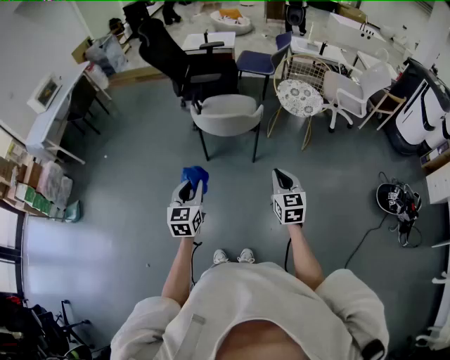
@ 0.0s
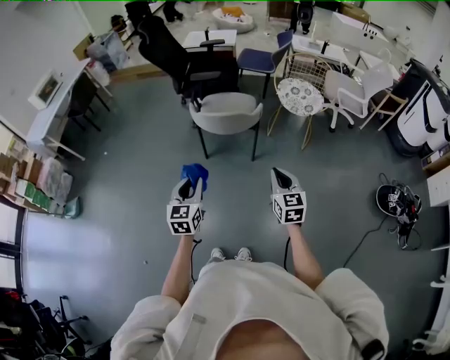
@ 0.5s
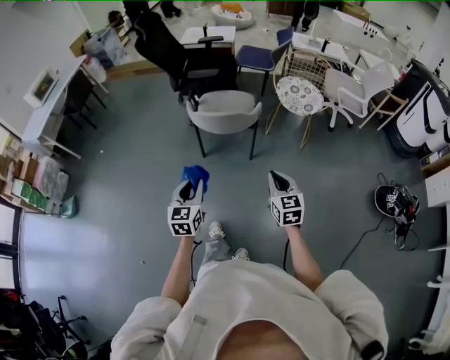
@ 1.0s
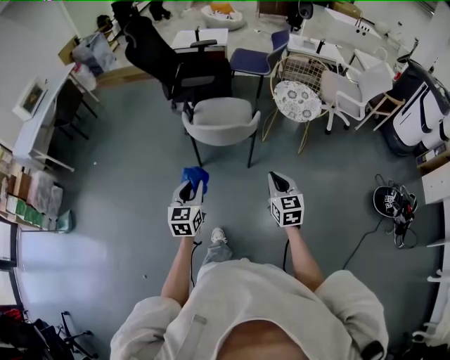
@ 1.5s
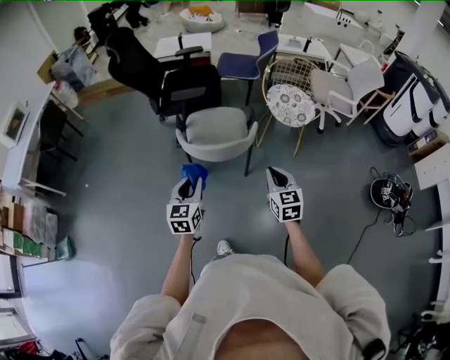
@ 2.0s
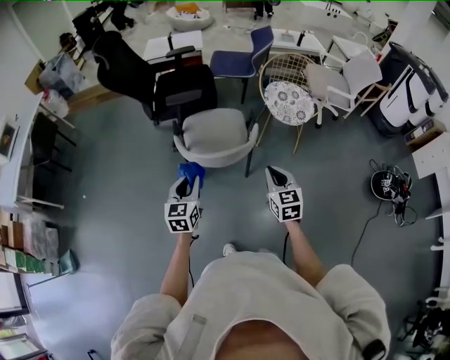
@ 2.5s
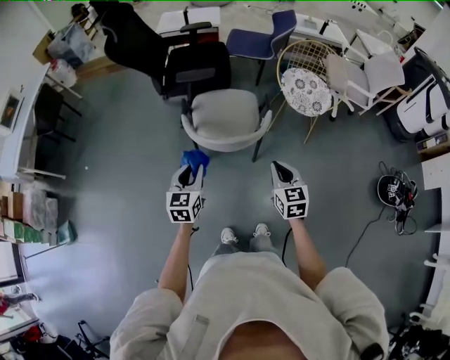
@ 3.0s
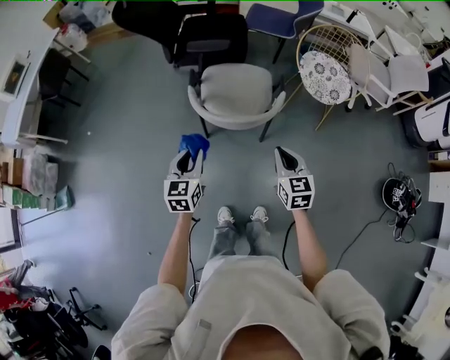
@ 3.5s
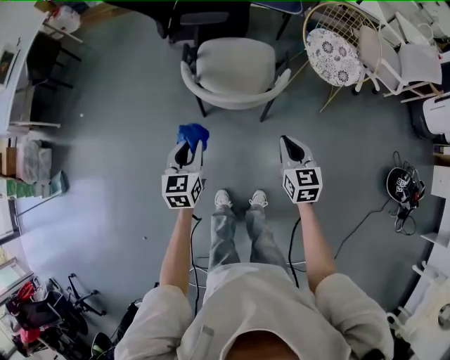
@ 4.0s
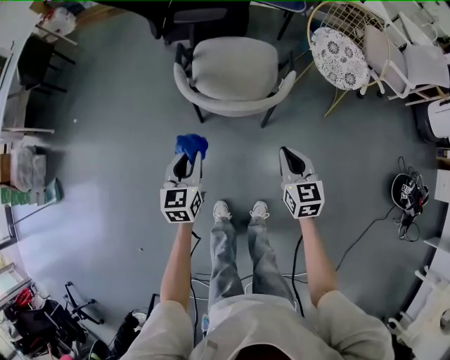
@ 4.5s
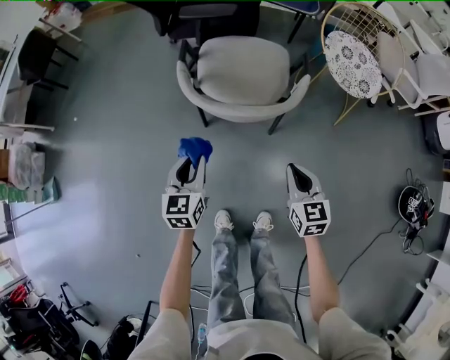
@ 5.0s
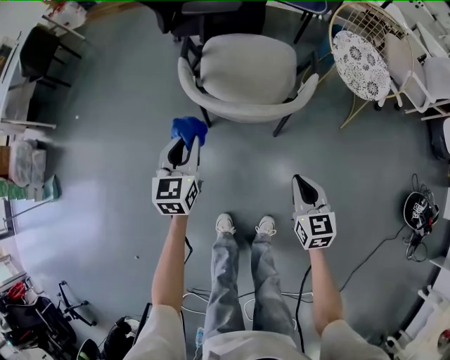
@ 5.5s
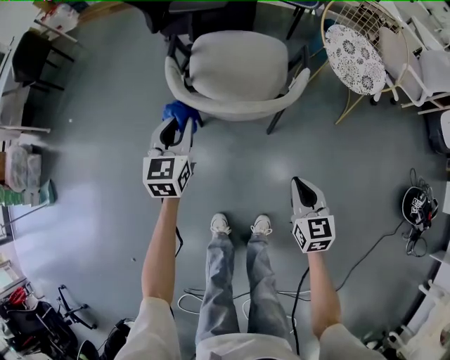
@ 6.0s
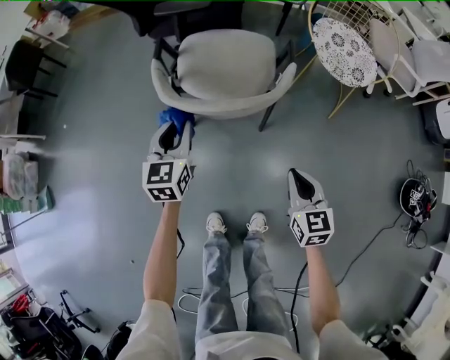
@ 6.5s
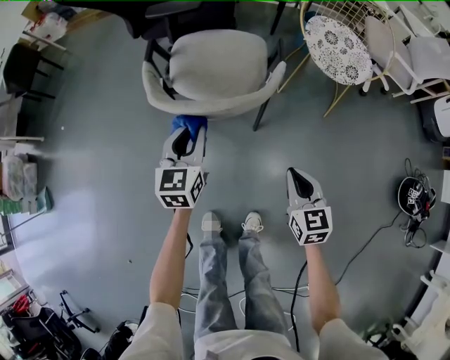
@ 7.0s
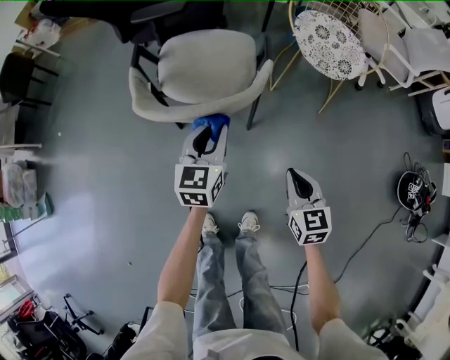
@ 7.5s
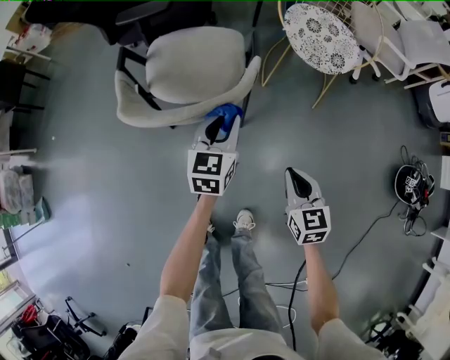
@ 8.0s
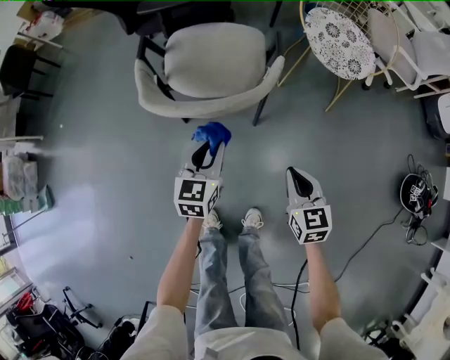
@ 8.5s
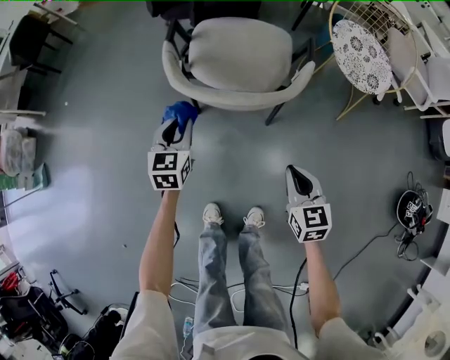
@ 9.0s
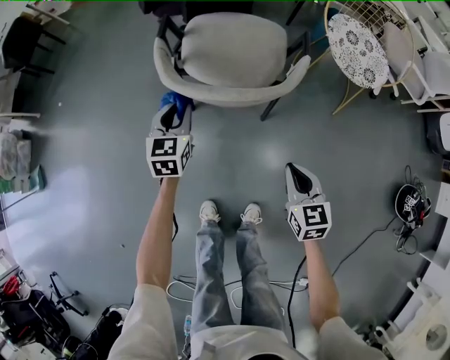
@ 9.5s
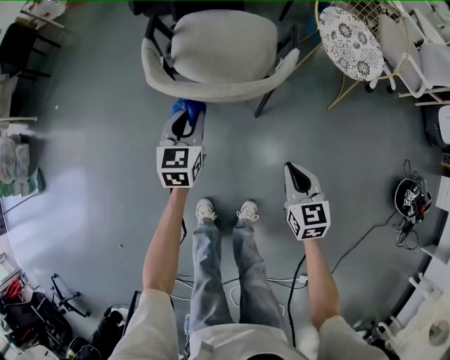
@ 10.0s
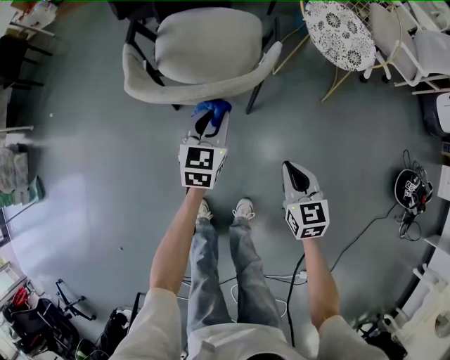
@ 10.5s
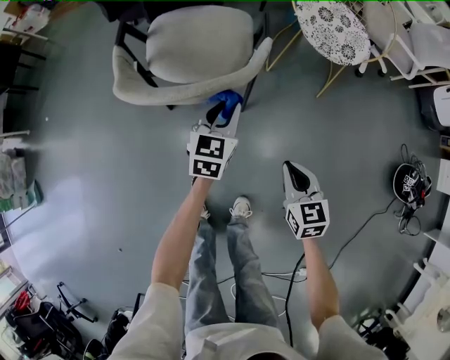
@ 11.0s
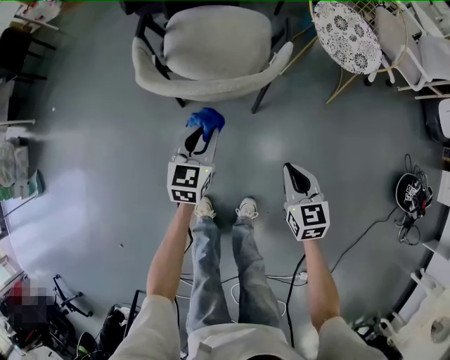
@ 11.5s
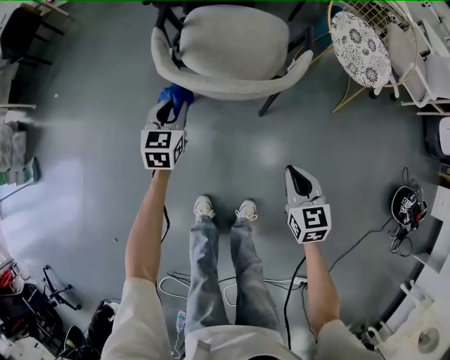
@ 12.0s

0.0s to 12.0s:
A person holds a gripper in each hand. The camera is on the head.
0.0s to 2.0s: The two grippers go some 25 cm forward.
2.0s to 4.0s: The right gripper moves downward and forward, approximately 15 cm. The left gripper moves downward, some 10 cm.
4.0s to 6.0s: The left gripper heads forward and downward, covering roughly 20 cm. Meanwhile the right gripper shifts approximately 15 cm downward.
6.0s to 8.0s: The right gripper travels to the right by some 10 cm; the left gripper goes roughly 25 cm to the right.
8.0s to 10.0s: The right gripper heads to the left, covering some 10 cm, while the left gripper heads to the left, covering about 20 cm.
10.0s to 12.0s: The right gripper moves some 5 cm to the right and comes back; the left gripper moves some 15 cm to the right and comes back.

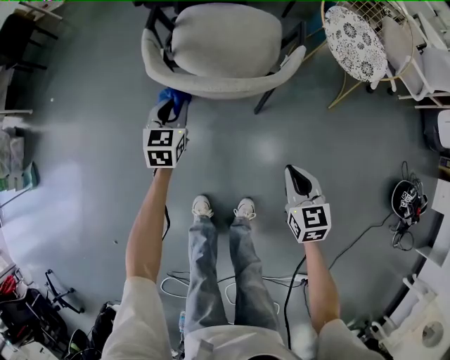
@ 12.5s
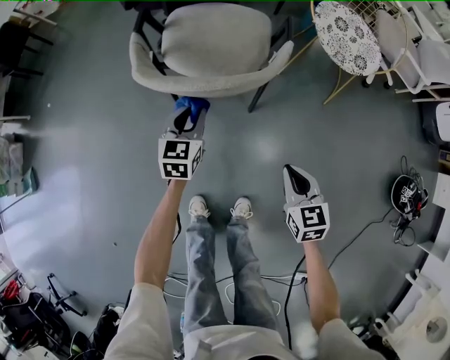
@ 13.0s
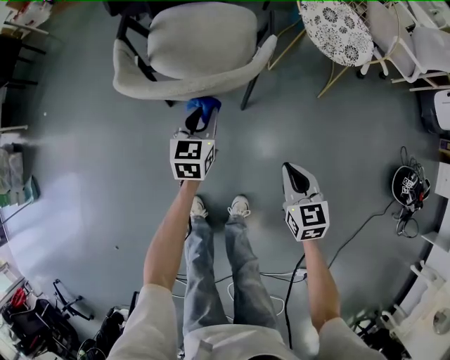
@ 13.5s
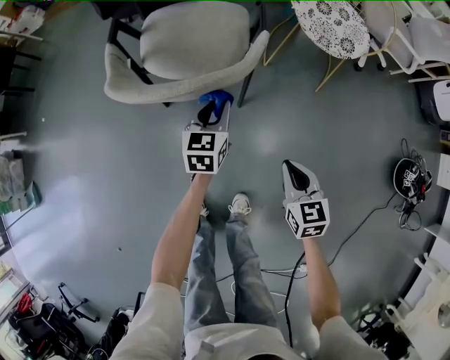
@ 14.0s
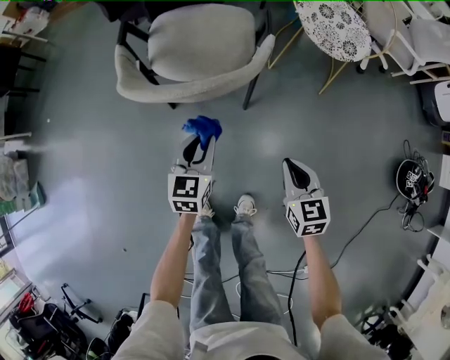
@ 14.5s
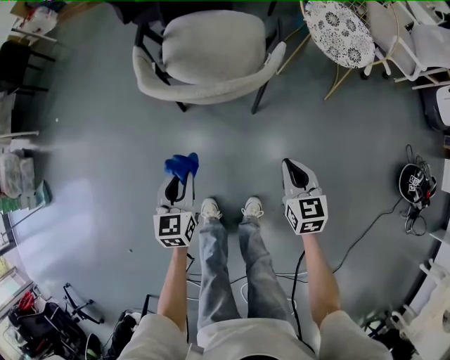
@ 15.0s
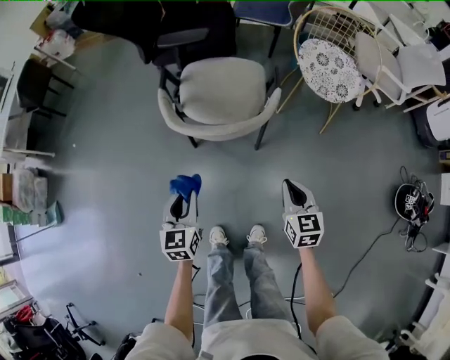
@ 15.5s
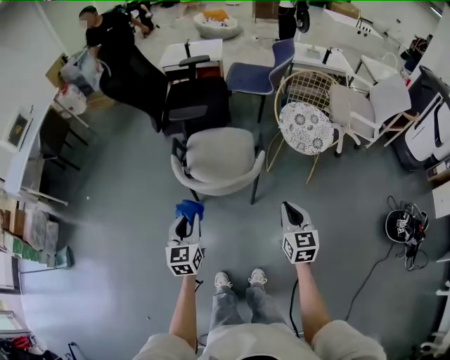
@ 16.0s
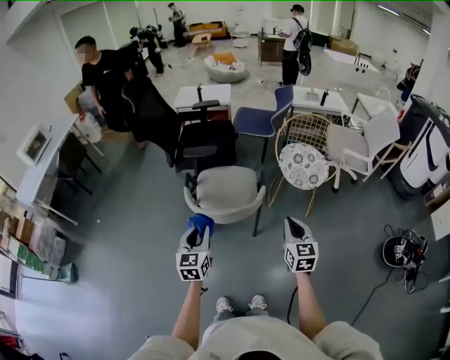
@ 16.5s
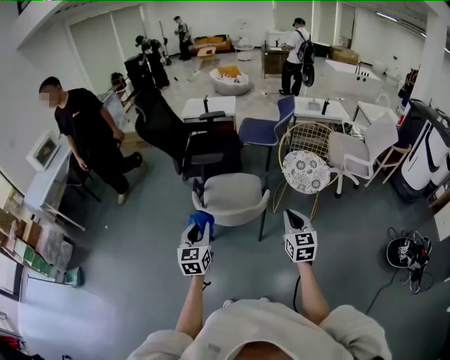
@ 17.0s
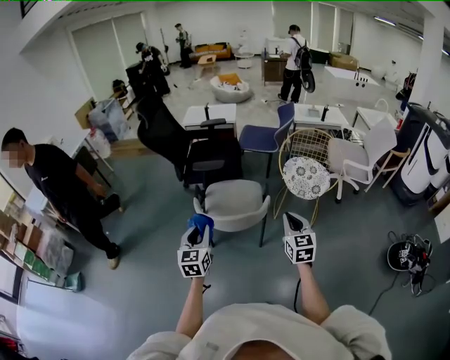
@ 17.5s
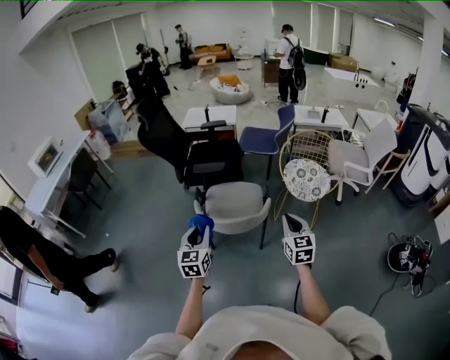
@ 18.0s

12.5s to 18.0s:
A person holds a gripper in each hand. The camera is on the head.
12.5s to 14.5s: The right gripper is displaced to the right by some 5 cm. The left gripper shifts roughly 15 cm to the right and backward.
14.5s to 16.0s: The right gripper is displaced upward by approximately 25 cm. Meanwhile the left gripper moves upward and to the left, approximately 30 cm.
16.0s to 18.0s: Both grippers travel together upward, roughly 15 cm.

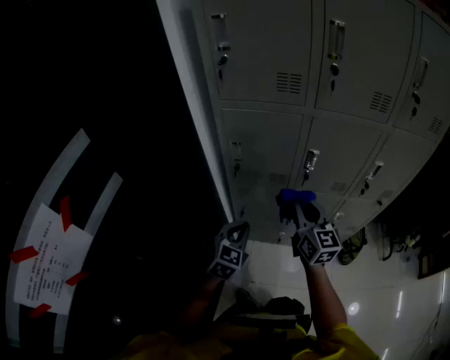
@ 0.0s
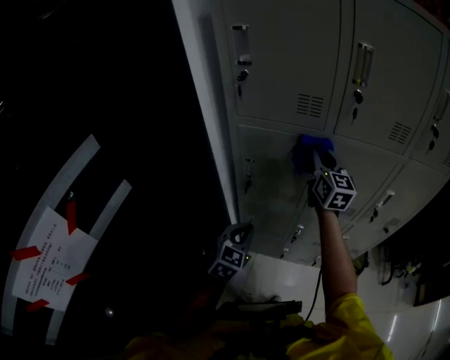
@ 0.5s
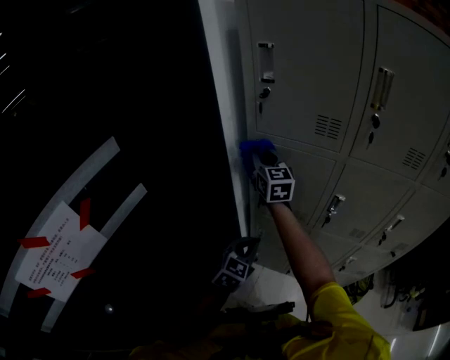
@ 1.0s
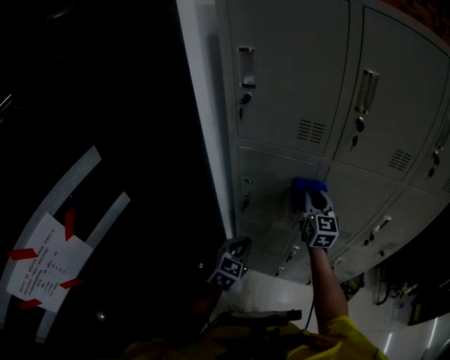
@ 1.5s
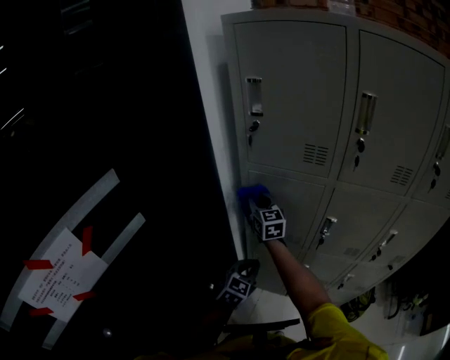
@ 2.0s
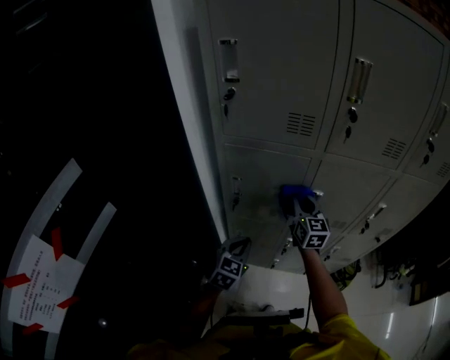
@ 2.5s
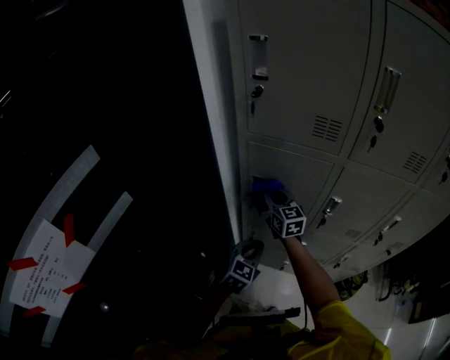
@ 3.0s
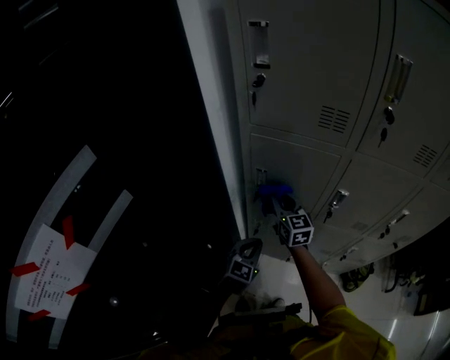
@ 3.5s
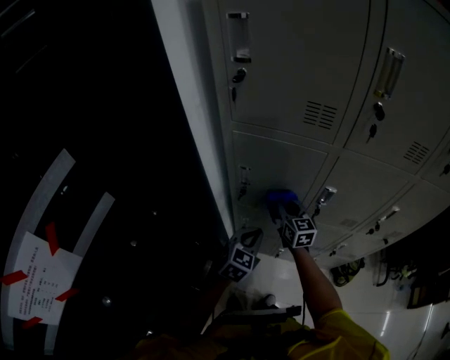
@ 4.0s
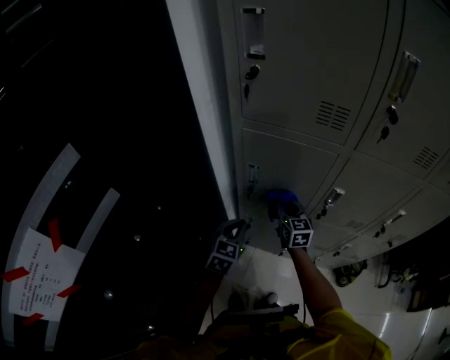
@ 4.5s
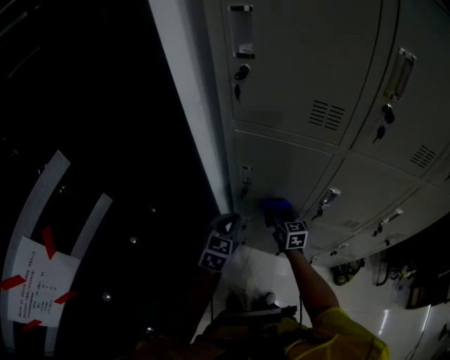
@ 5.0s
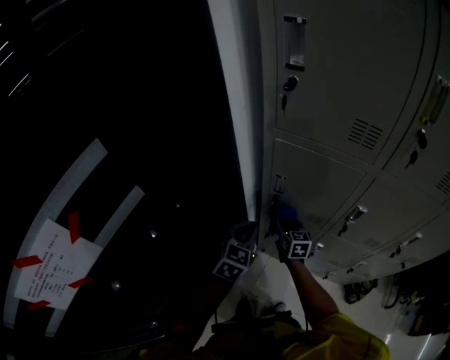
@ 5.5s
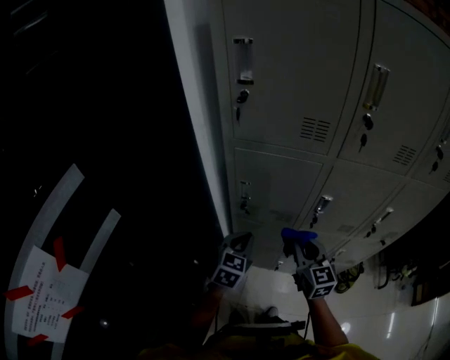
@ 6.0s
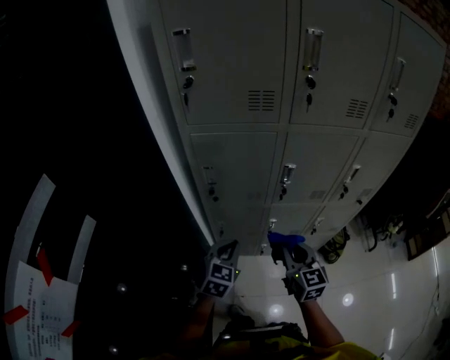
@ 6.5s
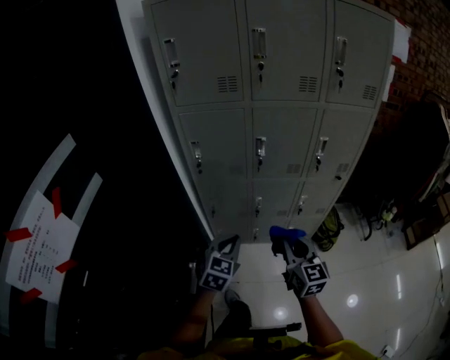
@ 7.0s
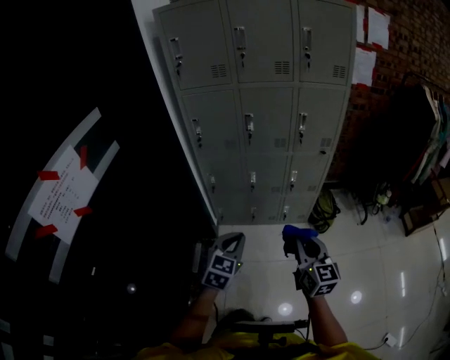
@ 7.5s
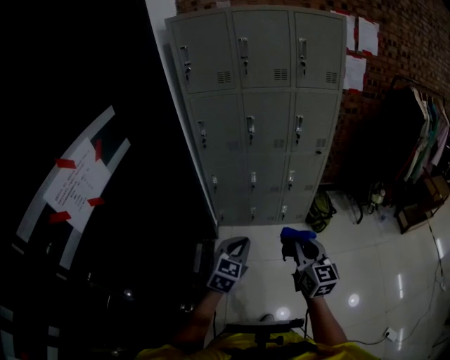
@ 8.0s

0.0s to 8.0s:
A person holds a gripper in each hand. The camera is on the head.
0.0s to 2.0s: The left gripper is displaced forward by approximately 5 cm; the right gripper swings left and right, roughly 25 cm each way, with 2 reversals.
2.0s to 4.0s: The right gripper moves left and right over about 20 cm, changing direction 2 times, while the left gripper moves some 5 cm.
4.0s to 6.0s: The right gripper moves backward and upward, some 15 cm.
6.0s to 8.0s: Both grippers are carried backward, about 60 cm.

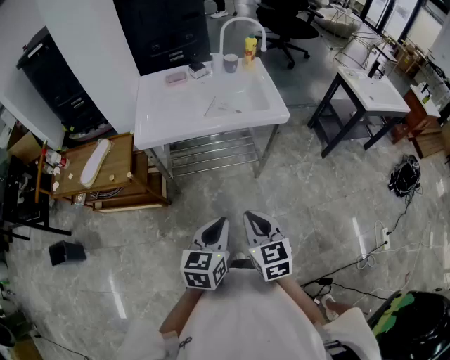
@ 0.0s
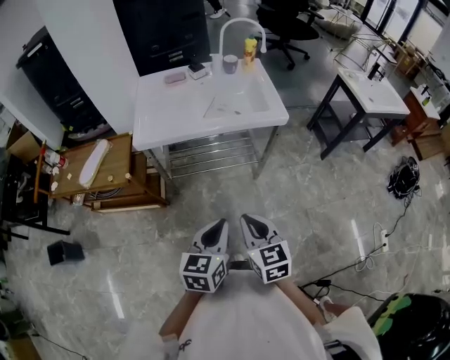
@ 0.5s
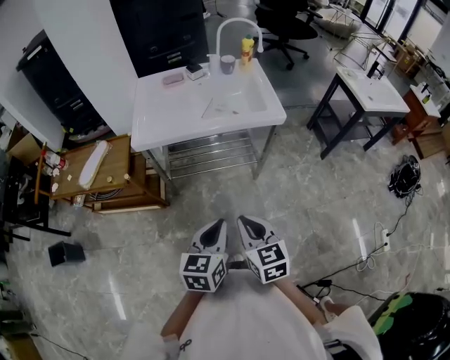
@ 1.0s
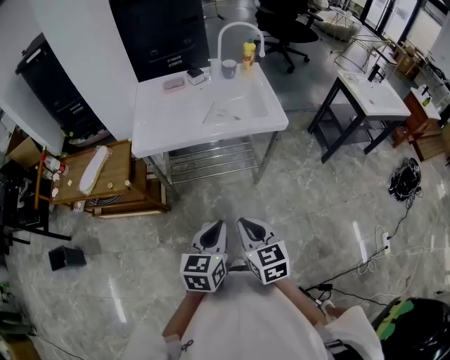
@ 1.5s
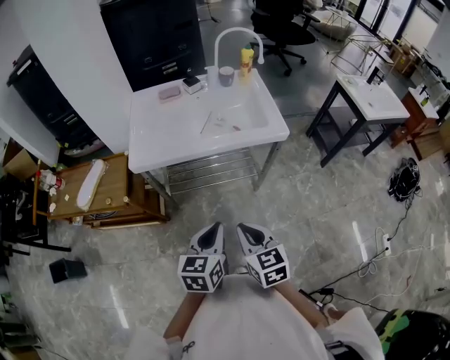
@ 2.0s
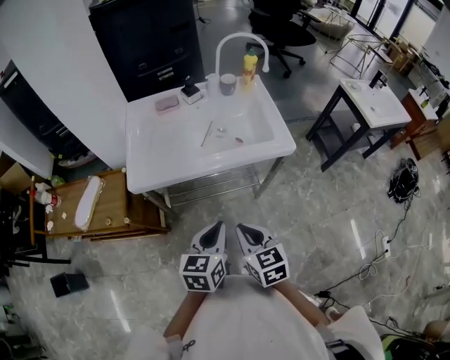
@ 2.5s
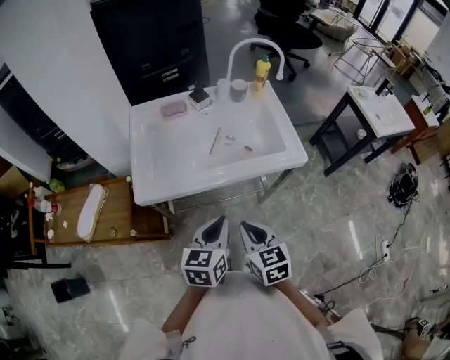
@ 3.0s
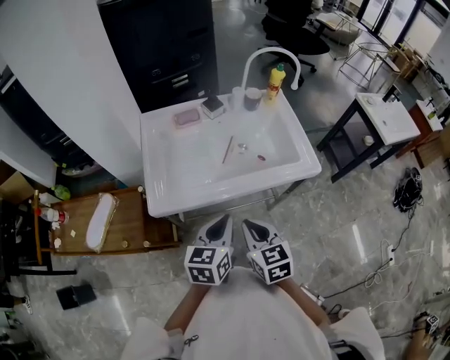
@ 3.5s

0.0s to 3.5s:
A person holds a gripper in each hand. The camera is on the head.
0.0s to 2.0s: Both grippers travel together forward, some 5 cm.
2.0s to 3.5s: The two grippers go some 20 cm forward and to the left.
